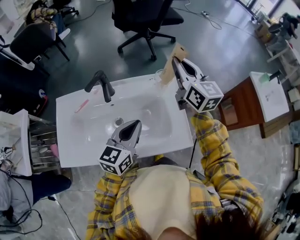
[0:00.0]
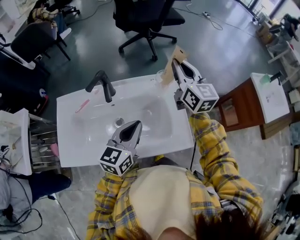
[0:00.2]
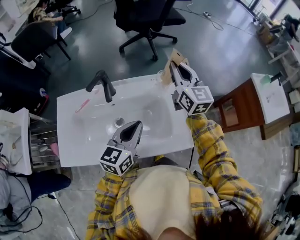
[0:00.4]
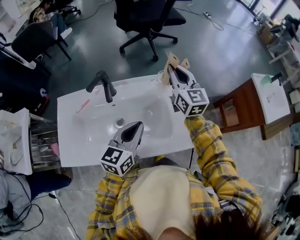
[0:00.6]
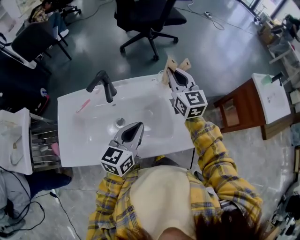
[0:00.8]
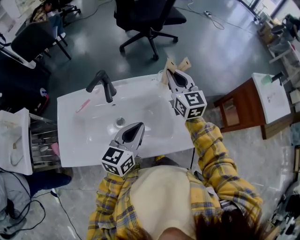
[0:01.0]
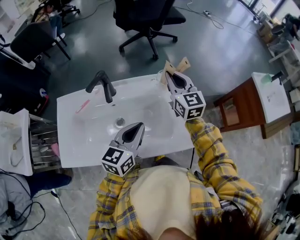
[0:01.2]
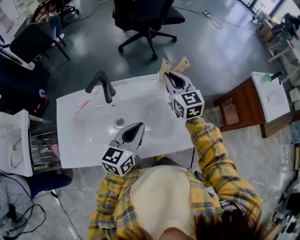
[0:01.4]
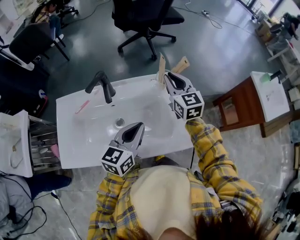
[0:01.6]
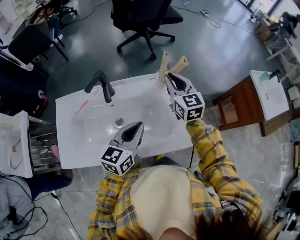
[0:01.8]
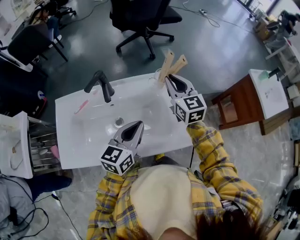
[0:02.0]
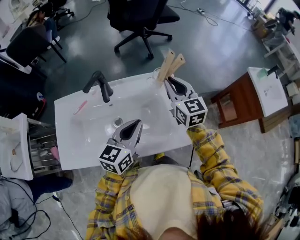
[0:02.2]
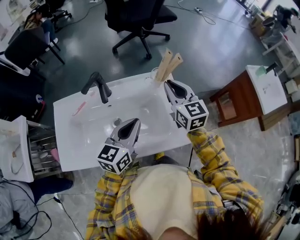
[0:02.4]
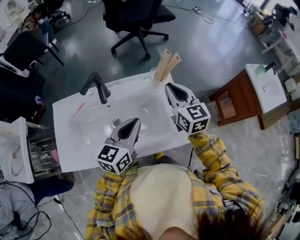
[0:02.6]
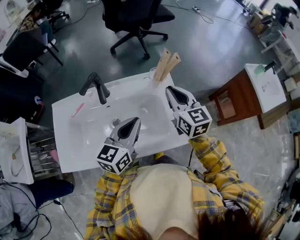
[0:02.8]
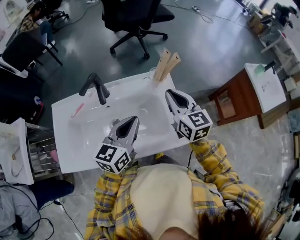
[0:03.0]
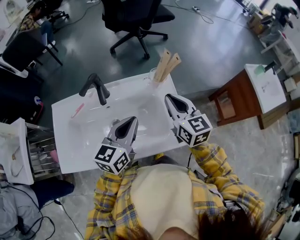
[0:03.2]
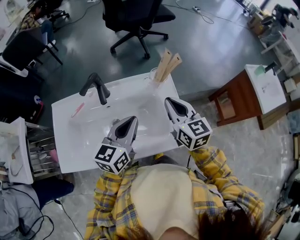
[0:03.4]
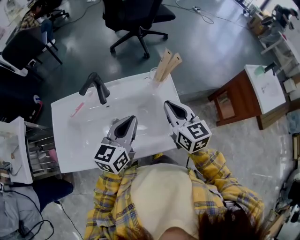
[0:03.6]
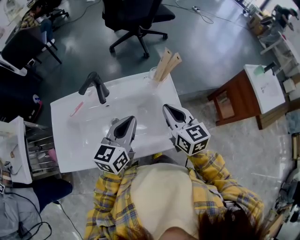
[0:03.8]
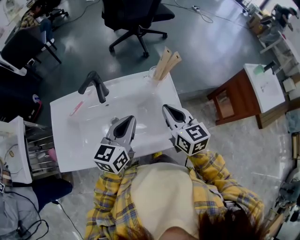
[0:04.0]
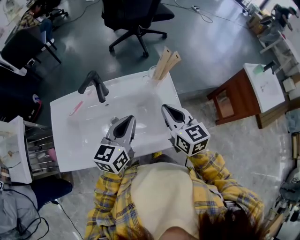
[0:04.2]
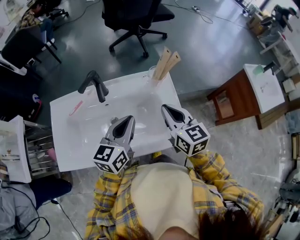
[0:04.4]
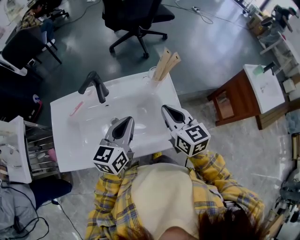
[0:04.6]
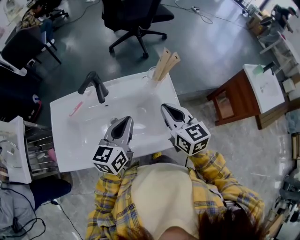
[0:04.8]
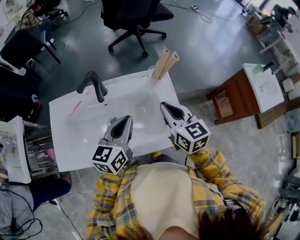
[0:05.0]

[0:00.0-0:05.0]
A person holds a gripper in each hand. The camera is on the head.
0:00.0 to 0:01.6: The right gripper shifts some 10 cm downward.
0:01.6 to 0:03.4: The right gripper shifts some 10 cm backward.
0:03.4 to 0:05.0: The grippers move only a little.

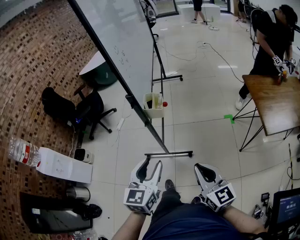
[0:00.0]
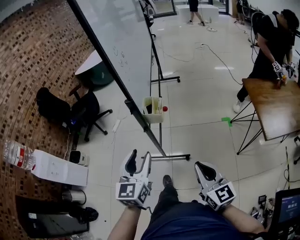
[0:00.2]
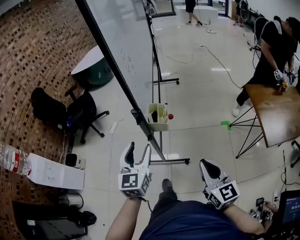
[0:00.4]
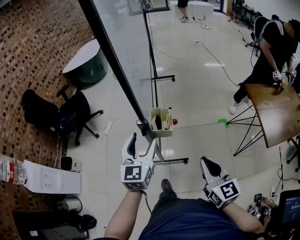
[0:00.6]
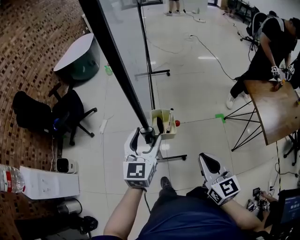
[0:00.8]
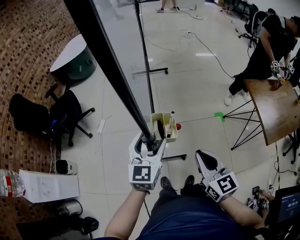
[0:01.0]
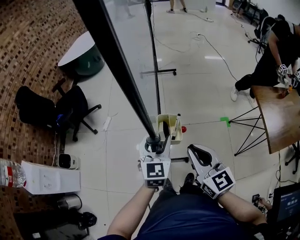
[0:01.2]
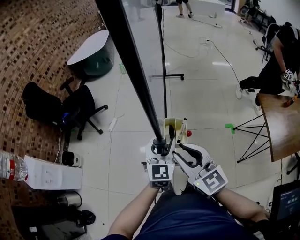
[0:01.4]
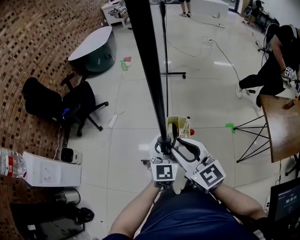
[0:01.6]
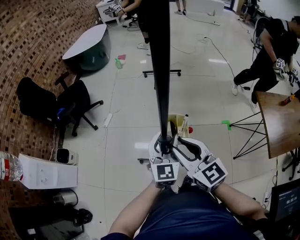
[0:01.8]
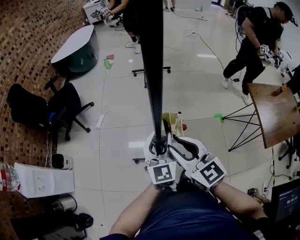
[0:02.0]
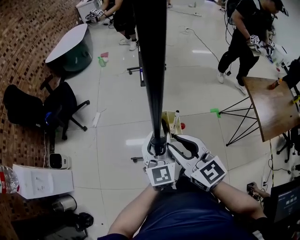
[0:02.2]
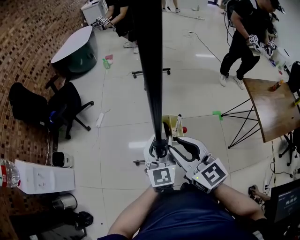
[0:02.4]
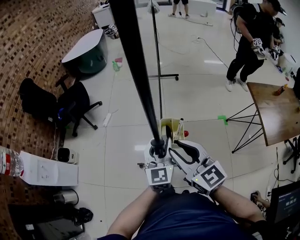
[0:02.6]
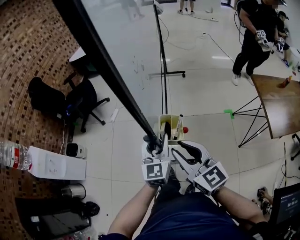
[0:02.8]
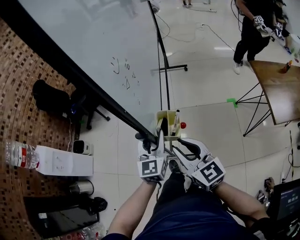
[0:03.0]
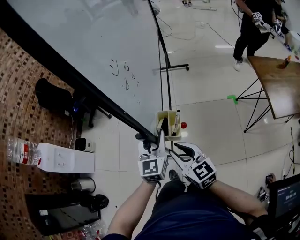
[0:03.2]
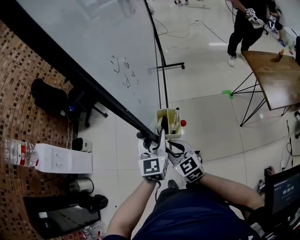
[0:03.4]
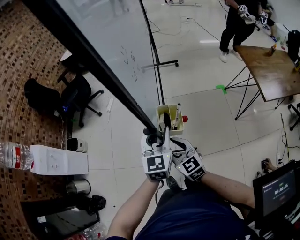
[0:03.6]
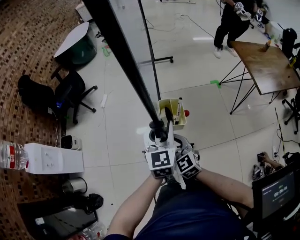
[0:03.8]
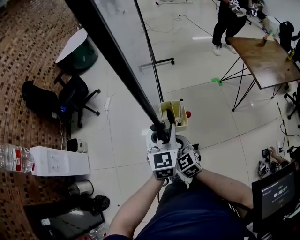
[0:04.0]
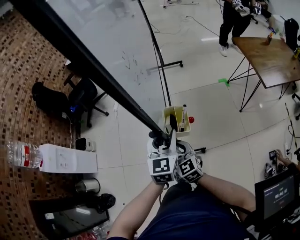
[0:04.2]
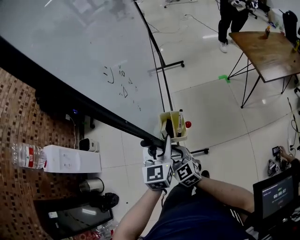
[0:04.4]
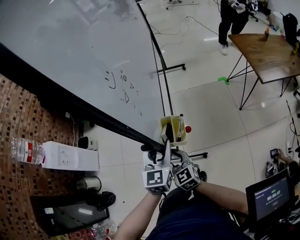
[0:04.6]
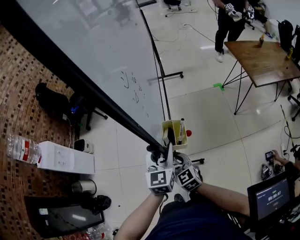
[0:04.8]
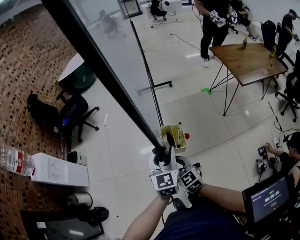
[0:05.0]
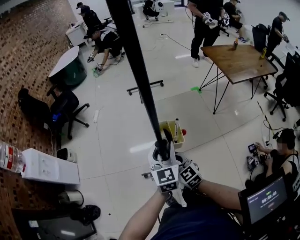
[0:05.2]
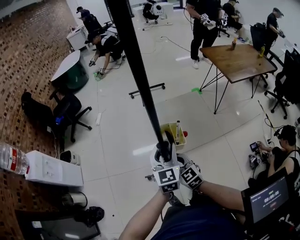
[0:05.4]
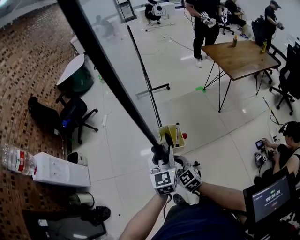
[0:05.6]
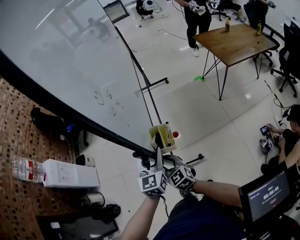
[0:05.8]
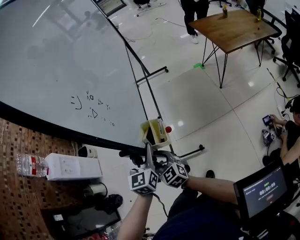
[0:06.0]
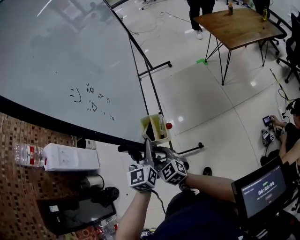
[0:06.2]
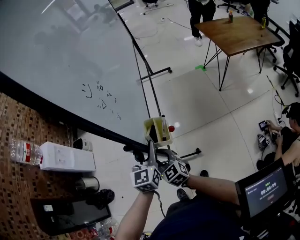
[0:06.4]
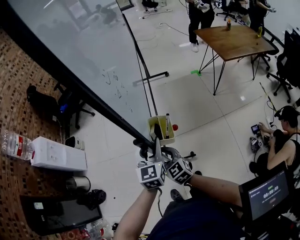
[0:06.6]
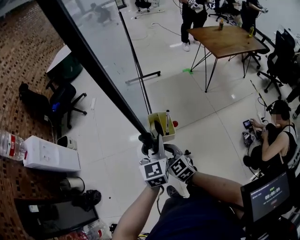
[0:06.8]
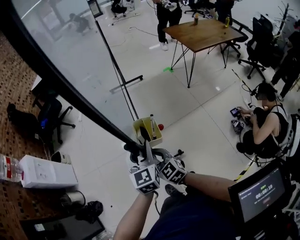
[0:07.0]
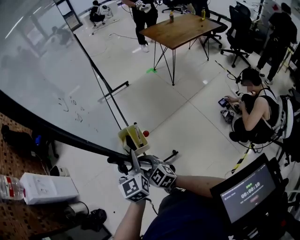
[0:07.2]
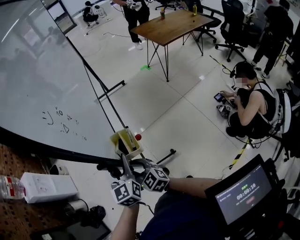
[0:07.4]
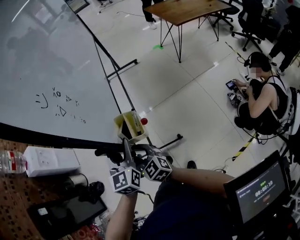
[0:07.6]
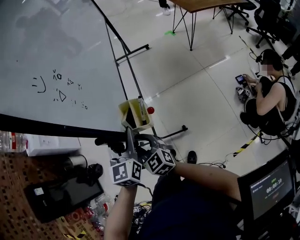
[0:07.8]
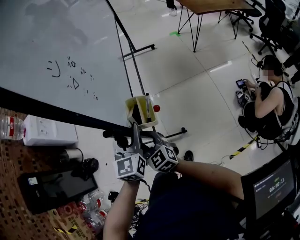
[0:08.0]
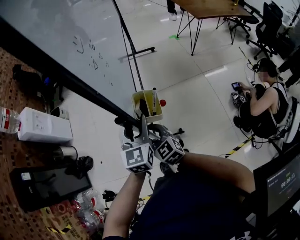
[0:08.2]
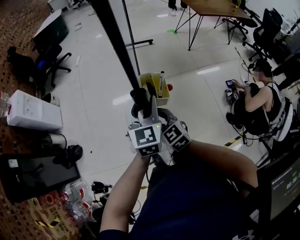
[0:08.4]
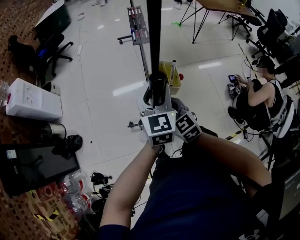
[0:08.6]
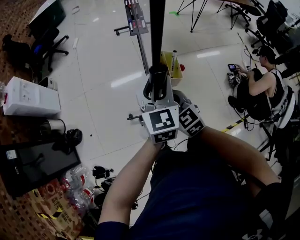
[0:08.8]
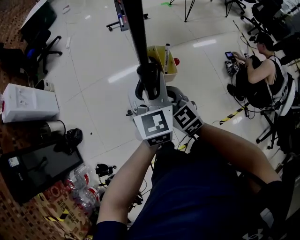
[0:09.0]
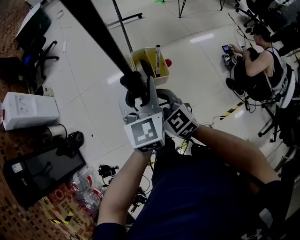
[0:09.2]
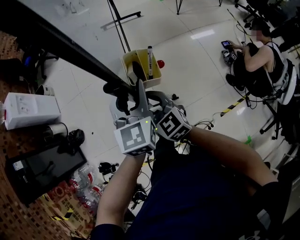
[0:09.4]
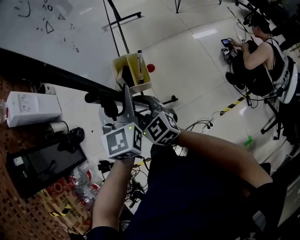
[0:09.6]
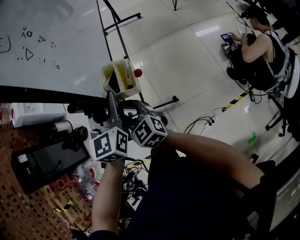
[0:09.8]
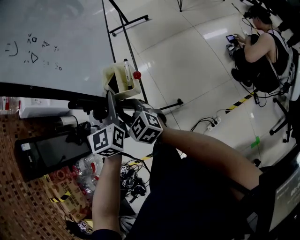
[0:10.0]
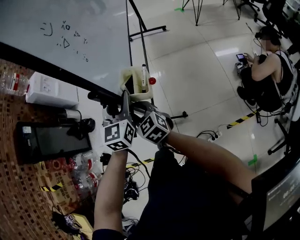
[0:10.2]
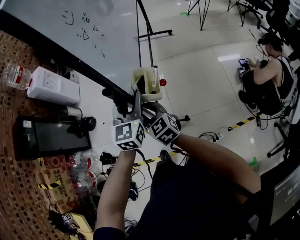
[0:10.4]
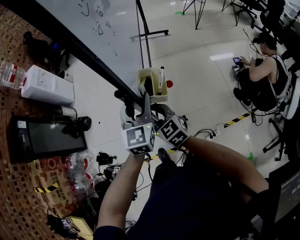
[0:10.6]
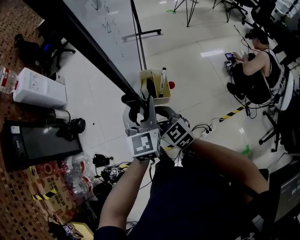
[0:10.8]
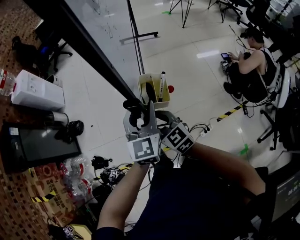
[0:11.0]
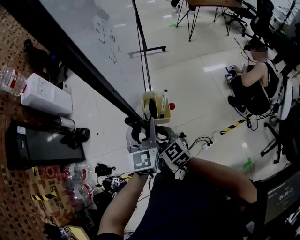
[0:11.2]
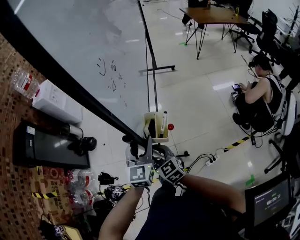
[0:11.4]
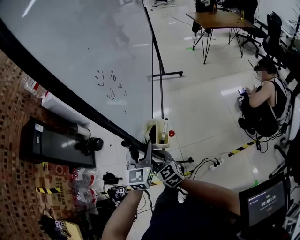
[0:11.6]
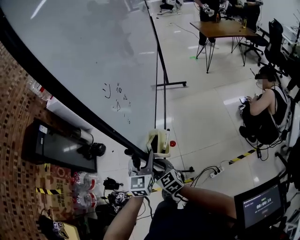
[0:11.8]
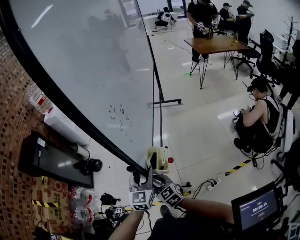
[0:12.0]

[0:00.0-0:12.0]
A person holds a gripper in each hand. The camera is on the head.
0:00.0 to 0:01.6: The left gripper goes approximately 25 cm forward. The right gripper travels forward and to the left by some 30 cm, and opens its fingers.
0:01.6 to 0:03.0: The right gripper moves backward, about 15 cm. Meanwhile the left gripper goes approximately 15 cm backward and to the left.
0:03.0 to 0:04.4: The left gripper heads backward, covering some 20 cm, while the right gripper heads backward, downward and to the left, covering some 25 cm.
0:04.4 to 0:06.0: Both grippers travel together backward, approximately 15 cm.
0:06.0 to 0:07.6: The two grippers go roughly 20 cm backward.
0:07.6 to 0:09.0: The grippers both shift backward by approximately 10 cm.
0:09.0 to 0:10.4: Both grippers move backward and to the left, about 15 cm.
0:10.4 to 0:12.0: The right gripper heads backward, covering approximately 15 cm. Meanwhile the left gripper shifts approximately 15 cm backward and to the left.

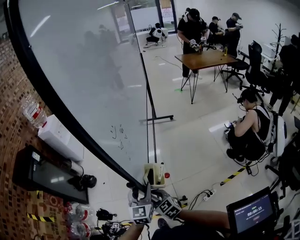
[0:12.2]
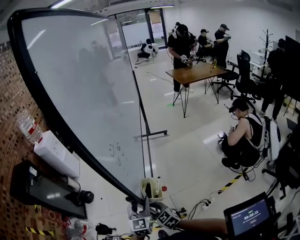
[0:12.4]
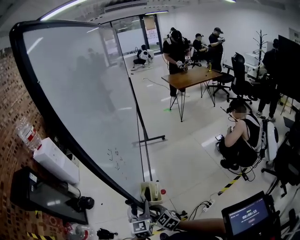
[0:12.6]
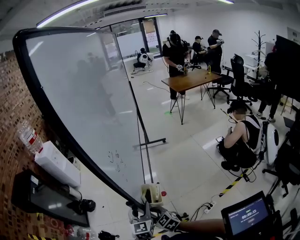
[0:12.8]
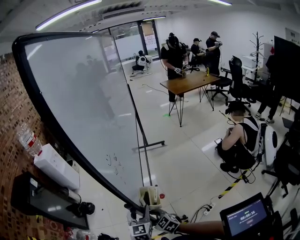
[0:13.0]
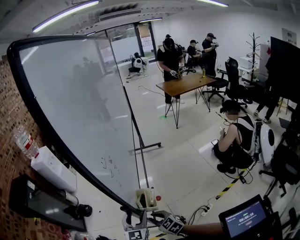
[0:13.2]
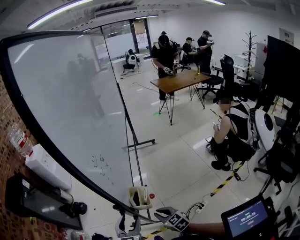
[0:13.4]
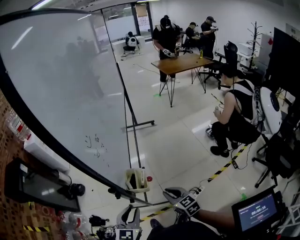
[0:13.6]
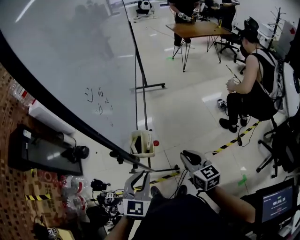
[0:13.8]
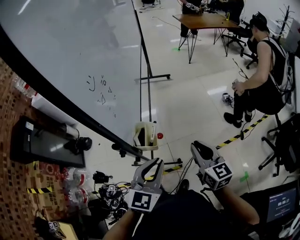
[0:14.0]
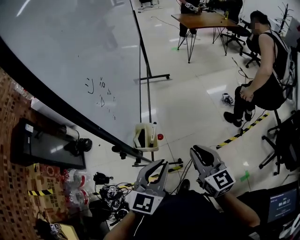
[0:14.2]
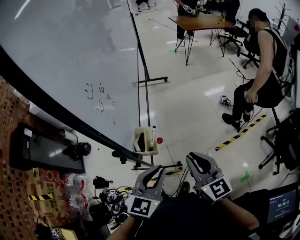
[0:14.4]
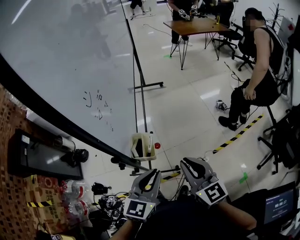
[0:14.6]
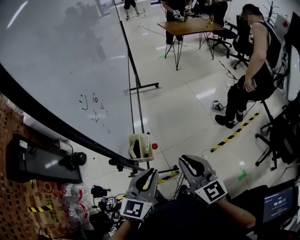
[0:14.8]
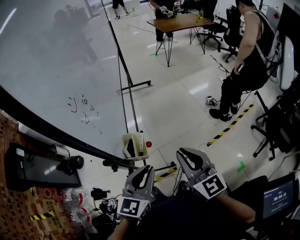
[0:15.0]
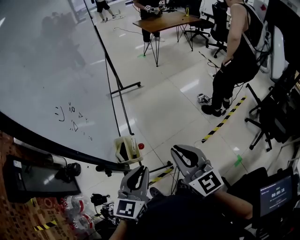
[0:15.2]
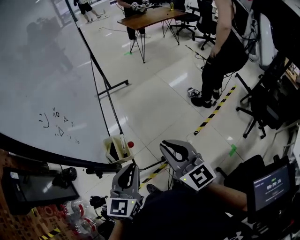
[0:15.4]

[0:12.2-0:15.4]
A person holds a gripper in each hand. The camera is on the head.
0:12.2 to 0:13.8: The left gripper heads backward, covering about 15 cm, swivels some 20 degrees, and closes its fingers, while the right gripper is displaced to the right by approximately 25 cm, and swivels about 30 degrees.
0:13.8 to 0:15.4: The left gripper moves some 5 cm, and turns by approximately 20 degrees, while the right gripper shifts some 10 cm upward, and changes its angle by some 20 degrees.

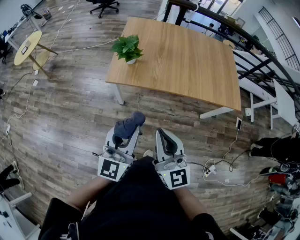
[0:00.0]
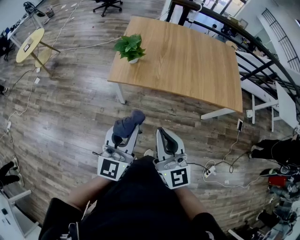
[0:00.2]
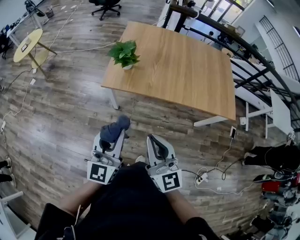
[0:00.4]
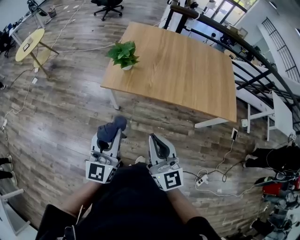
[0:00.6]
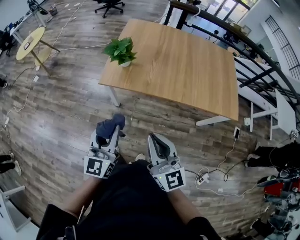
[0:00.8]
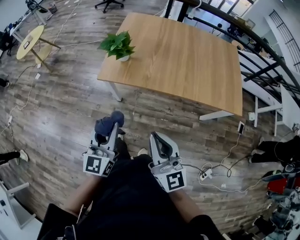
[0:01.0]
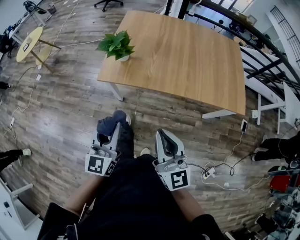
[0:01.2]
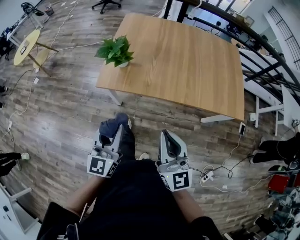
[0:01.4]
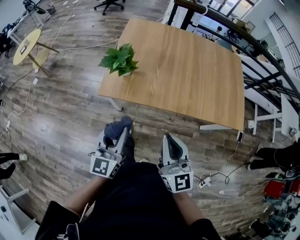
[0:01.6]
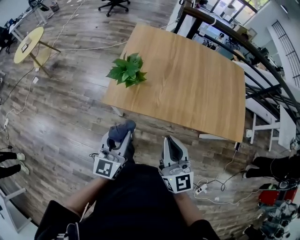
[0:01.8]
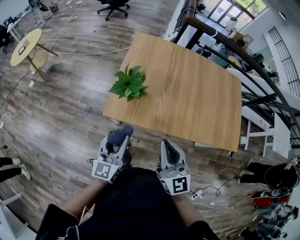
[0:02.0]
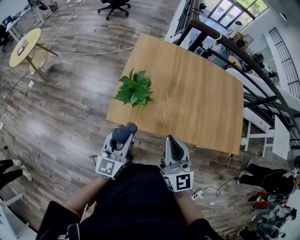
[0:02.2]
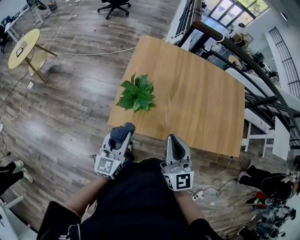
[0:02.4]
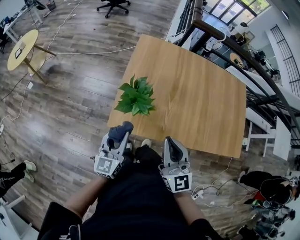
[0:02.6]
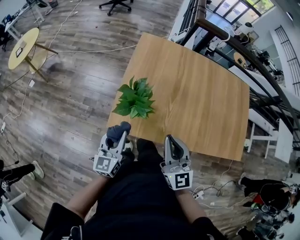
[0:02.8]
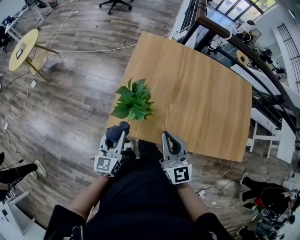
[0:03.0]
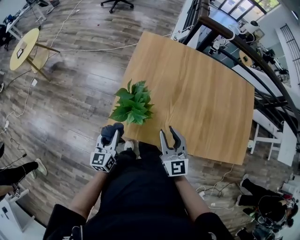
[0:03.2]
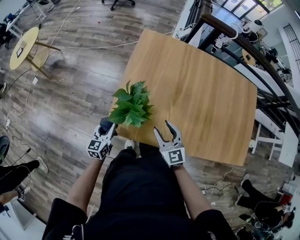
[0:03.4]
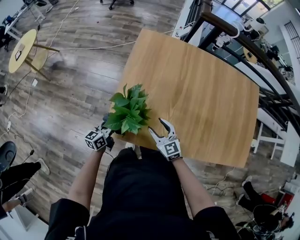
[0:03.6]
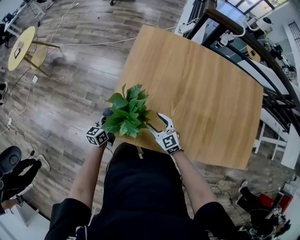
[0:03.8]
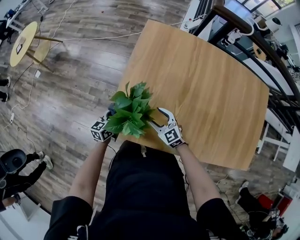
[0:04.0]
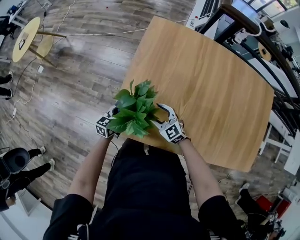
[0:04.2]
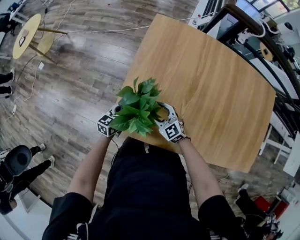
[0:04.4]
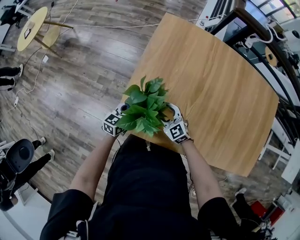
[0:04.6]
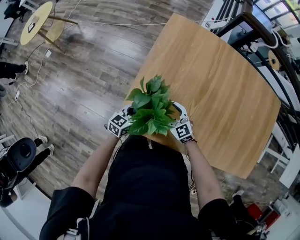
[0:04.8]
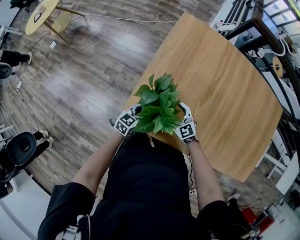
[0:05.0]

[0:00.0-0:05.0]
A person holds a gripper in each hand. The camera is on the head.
0:00.0 to 0:01.6: The right gripper moves forward and to the right, roughly 15 cm. The left gripper is displaced forward and downward by approximately 15 cm.
0:01.6 to 0:03.4: The left gripper goes about 40 cm forward, downward and to the left, and turns by about 20 degrees. The right gripper is displaced forward and downward by about 35 cm, swivels some 30 degrees, and opens up.
0:03.4 to 0:05.0: The left gripper shifts roughly 15 cm to the right and downward, and swivels about 20 degrees; the right gripper goes about 15 cm downward, forward and to the left, and swivels approximately 30 degrees.
